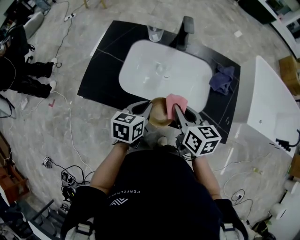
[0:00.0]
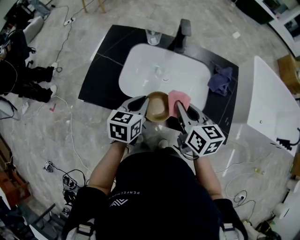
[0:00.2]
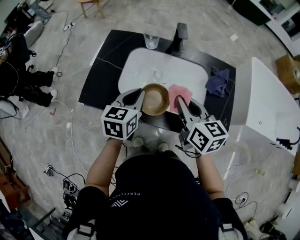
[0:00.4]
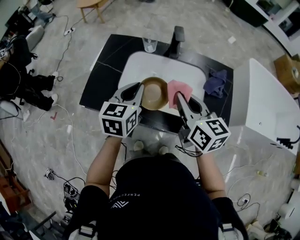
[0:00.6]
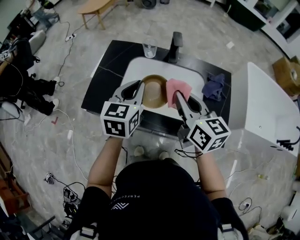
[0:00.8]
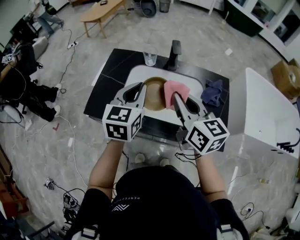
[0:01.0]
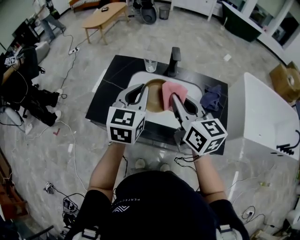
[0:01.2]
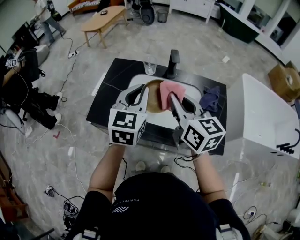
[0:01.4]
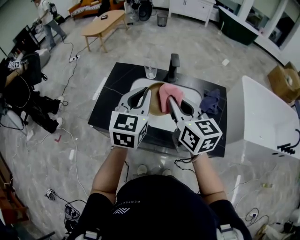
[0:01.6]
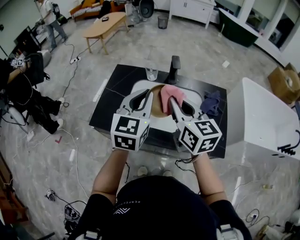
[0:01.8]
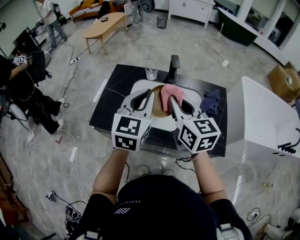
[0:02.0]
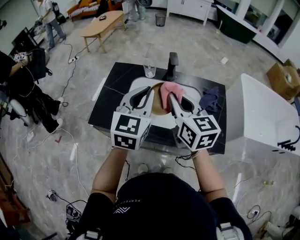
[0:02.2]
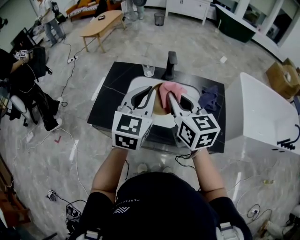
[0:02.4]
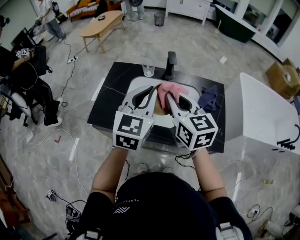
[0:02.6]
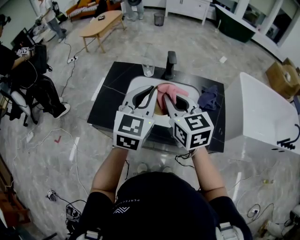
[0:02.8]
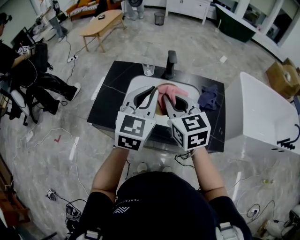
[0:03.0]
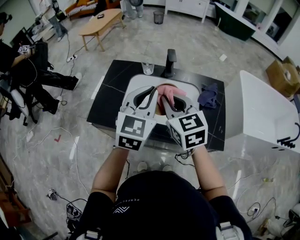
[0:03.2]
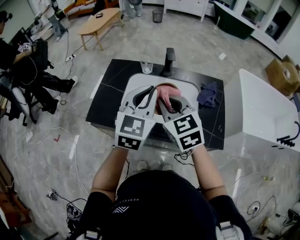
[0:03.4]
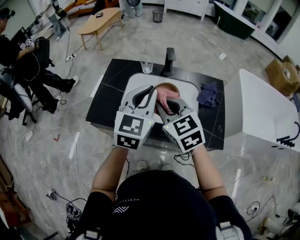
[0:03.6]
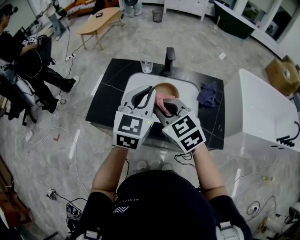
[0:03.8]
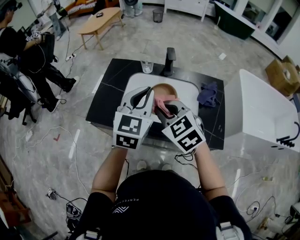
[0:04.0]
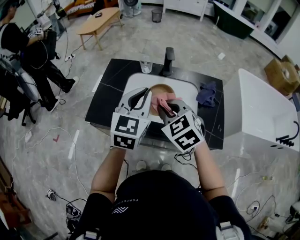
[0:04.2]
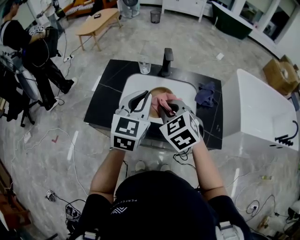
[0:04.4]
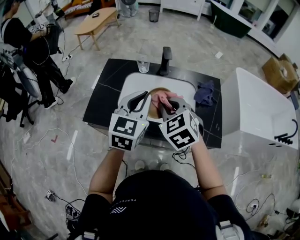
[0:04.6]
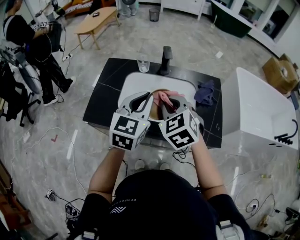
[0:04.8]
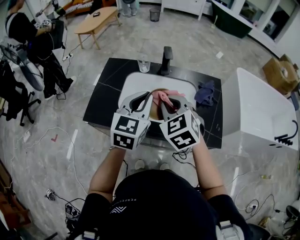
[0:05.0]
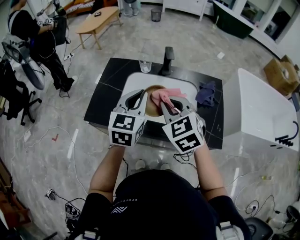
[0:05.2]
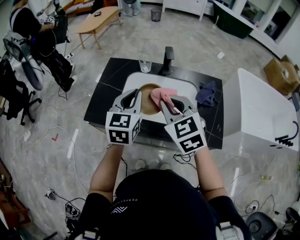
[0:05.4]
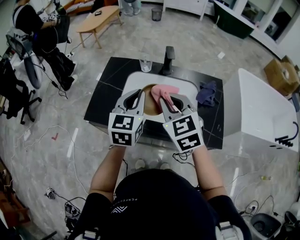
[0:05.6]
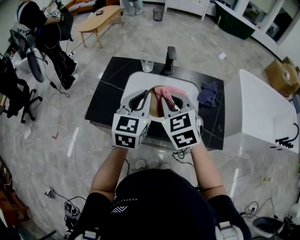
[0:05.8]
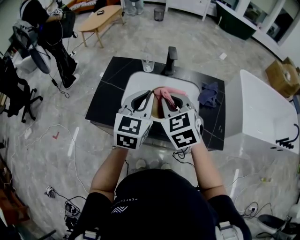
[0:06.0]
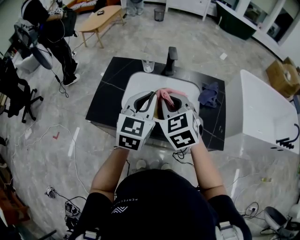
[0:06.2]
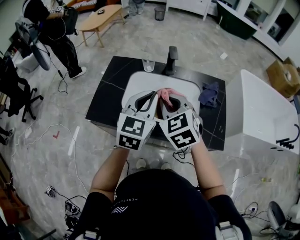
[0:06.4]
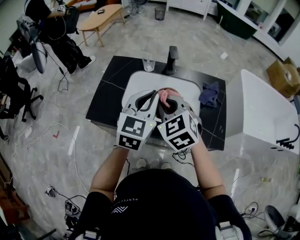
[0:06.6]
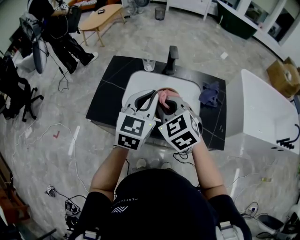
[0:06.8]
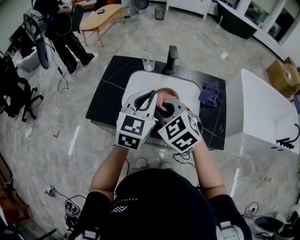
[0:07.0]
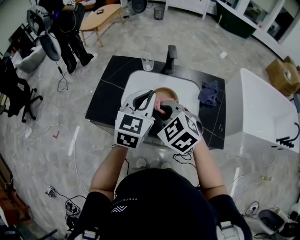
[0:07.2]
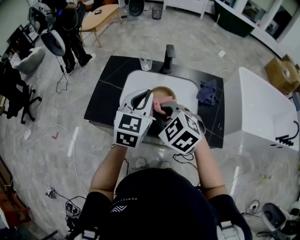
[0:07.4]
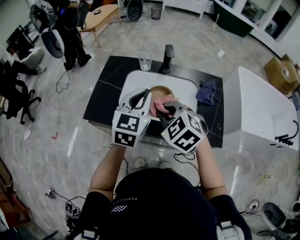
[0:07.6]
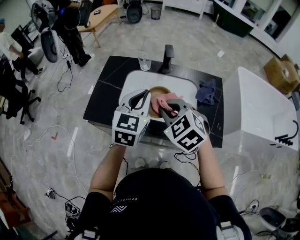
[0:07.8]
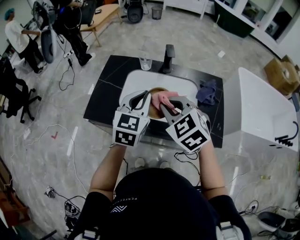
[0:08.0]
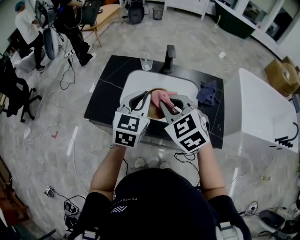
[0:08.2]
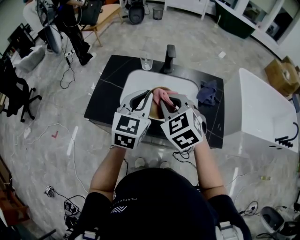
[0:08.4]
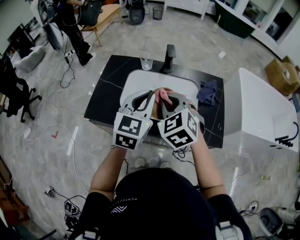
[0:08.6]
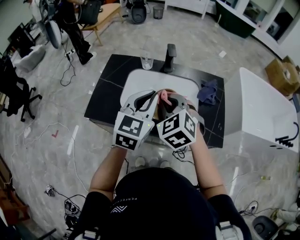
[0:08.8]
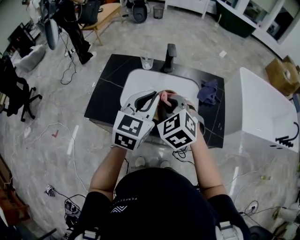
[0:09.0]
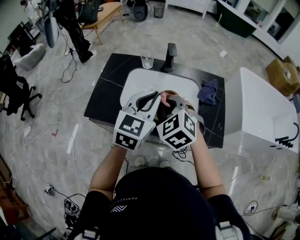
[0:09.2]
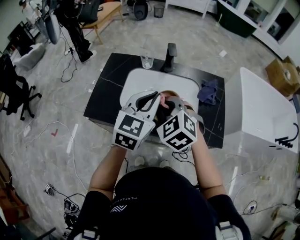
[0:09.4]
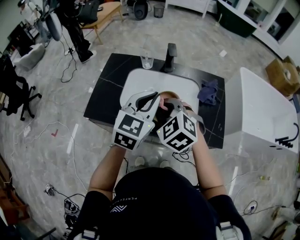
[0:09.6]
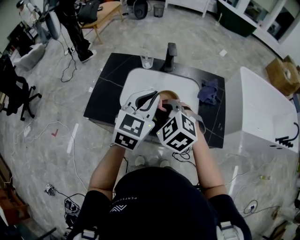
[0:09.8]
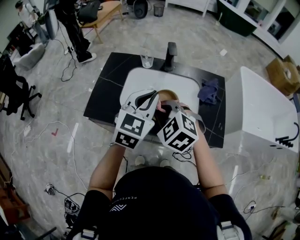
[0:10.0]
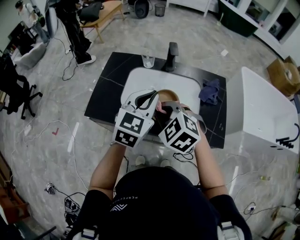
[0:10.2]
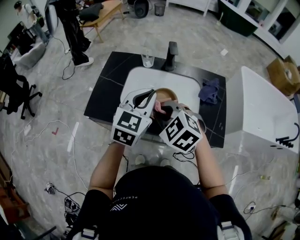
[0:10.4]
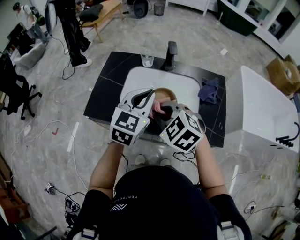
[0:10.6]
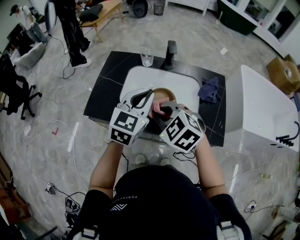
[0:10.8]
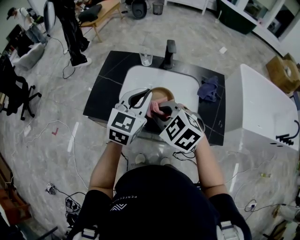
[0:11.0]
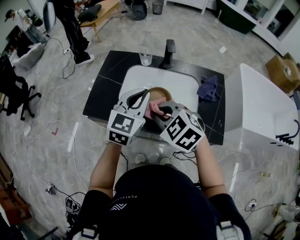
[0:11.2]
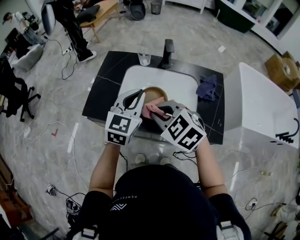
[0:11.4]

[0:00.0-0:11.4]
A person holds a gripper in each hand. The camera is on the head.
0:00.0 to 0:01.4: The grippers both shift upward by approximately 20 cm. The right gripper swivels some 30 degrees, while the left gripper swivels roughly 40 degrees.
0:01.4 to 0:02.8: The left gripper changes place by about 5 cm.
0:02.8 to 0:04.2: The right gripper is displaced downward by about 5 cm, and changes its angle by approximately 30 degrees.
0:04.2 to 0:05.6: The grippers stay close to where they were, moving slightly.
0:05.6 to 0:07.2: The right gripper ends up approximately 5 cm from where it was, and turns by approximately 20 degrees.
0:07.2 to 0:08.6: The right gripper shifts by roughly 5 cm.
0:08.6 to 0:10.0: The right gripper ends up approximately 5 cm from where it was.
0:10.0 to 0:11.4: The grippers make only small movements.

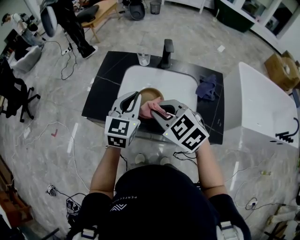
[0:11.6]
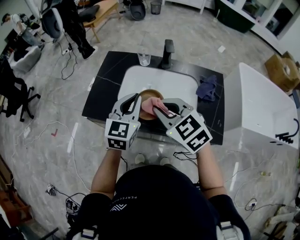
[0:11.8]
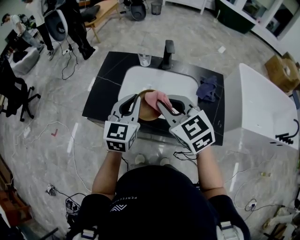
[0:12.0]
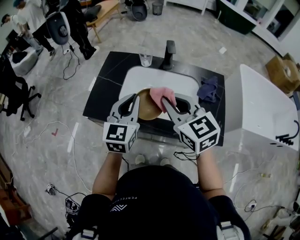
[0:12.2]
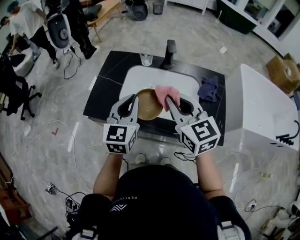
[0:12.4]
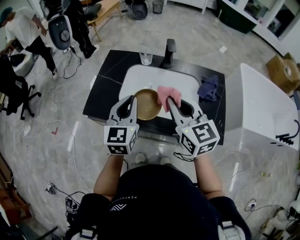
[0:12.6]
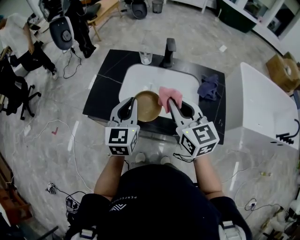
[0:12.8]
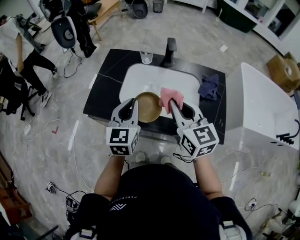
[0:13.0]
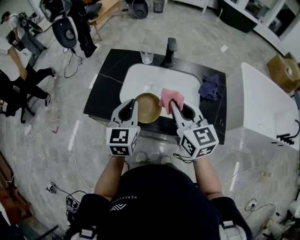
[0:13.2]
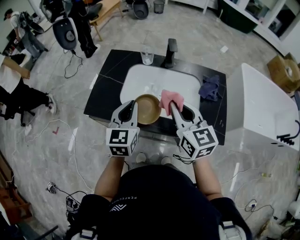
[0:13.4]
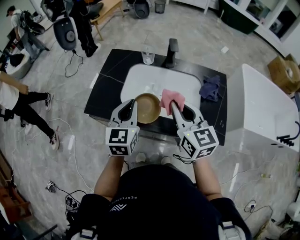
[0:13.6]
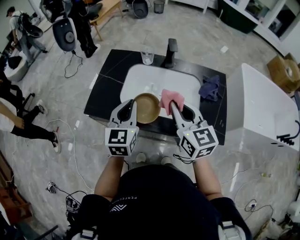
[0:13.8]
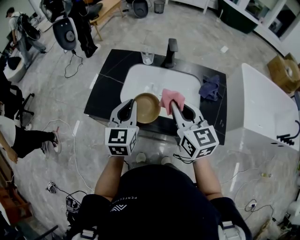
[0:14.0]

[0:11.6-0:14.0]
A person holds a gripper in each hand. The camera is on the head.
0:11.6 to 0:12.8: The right gripper travels to the right by some 5 cm, and changes its angle by some 40 degrees.
0:12.8 to 0:14.0: Both grippers stay put.

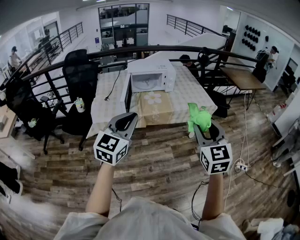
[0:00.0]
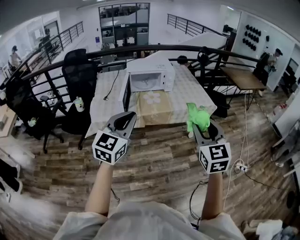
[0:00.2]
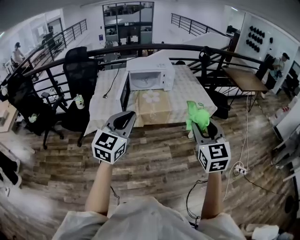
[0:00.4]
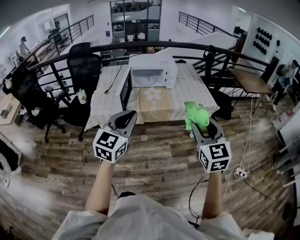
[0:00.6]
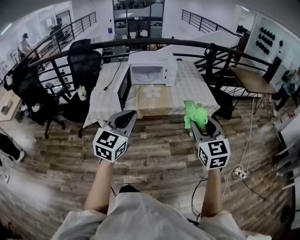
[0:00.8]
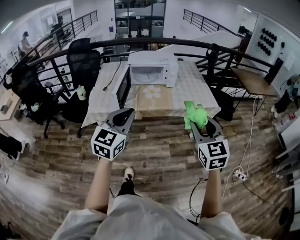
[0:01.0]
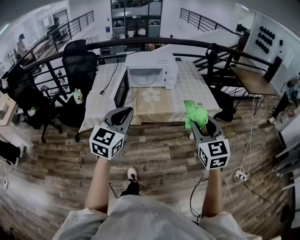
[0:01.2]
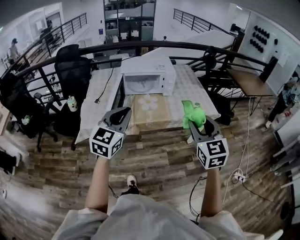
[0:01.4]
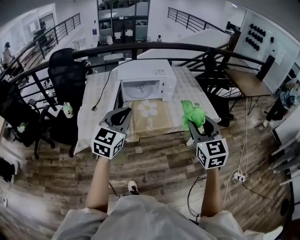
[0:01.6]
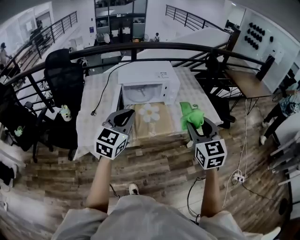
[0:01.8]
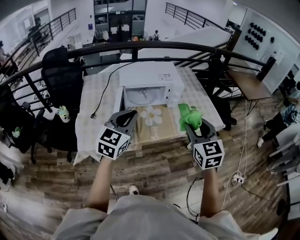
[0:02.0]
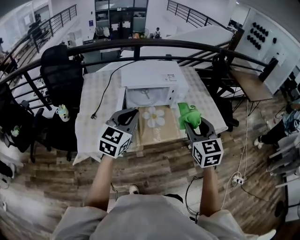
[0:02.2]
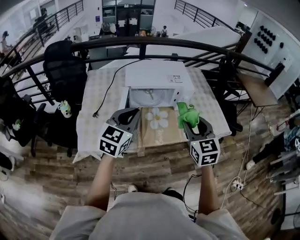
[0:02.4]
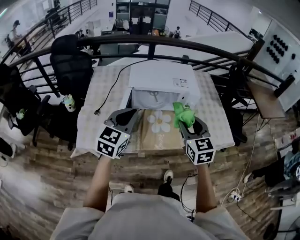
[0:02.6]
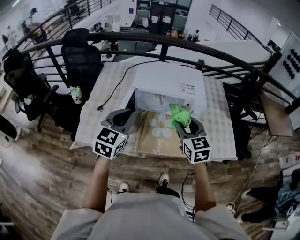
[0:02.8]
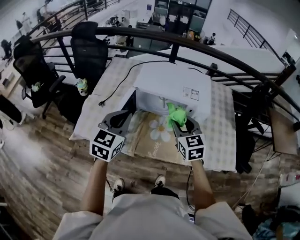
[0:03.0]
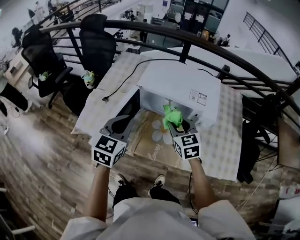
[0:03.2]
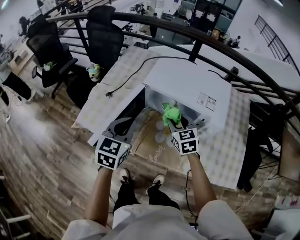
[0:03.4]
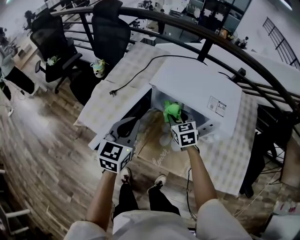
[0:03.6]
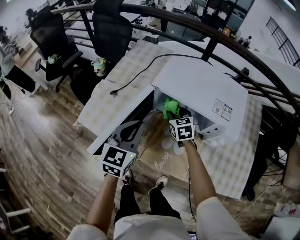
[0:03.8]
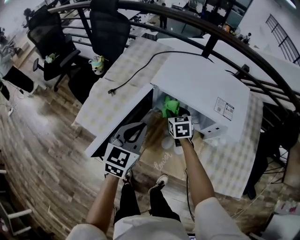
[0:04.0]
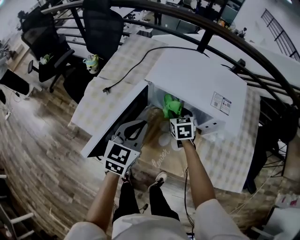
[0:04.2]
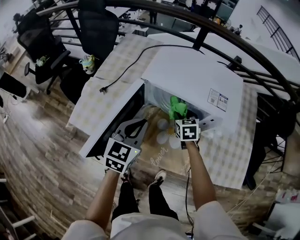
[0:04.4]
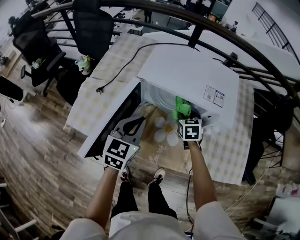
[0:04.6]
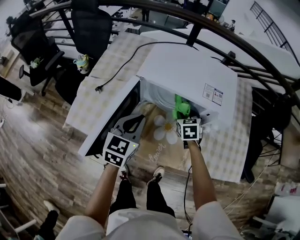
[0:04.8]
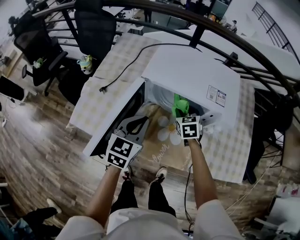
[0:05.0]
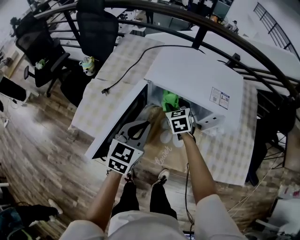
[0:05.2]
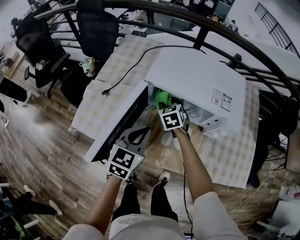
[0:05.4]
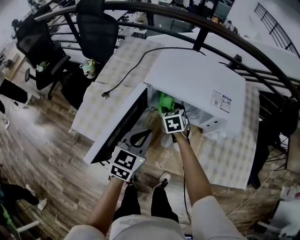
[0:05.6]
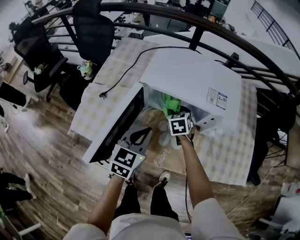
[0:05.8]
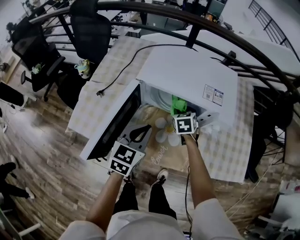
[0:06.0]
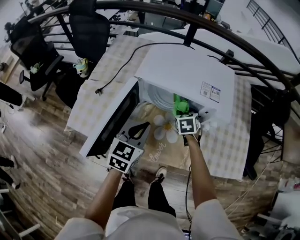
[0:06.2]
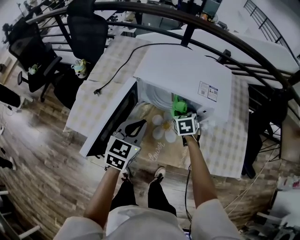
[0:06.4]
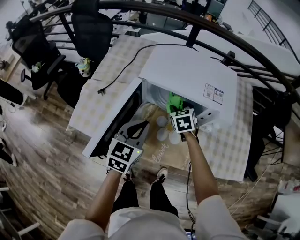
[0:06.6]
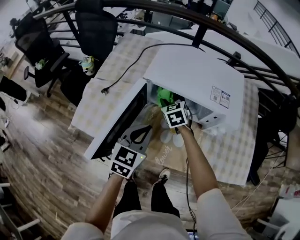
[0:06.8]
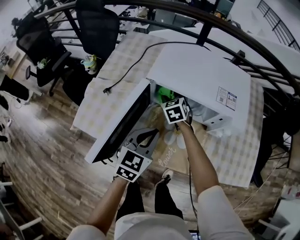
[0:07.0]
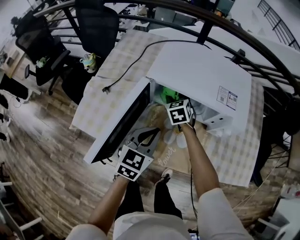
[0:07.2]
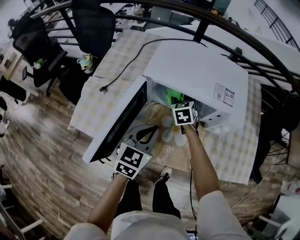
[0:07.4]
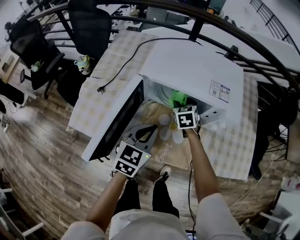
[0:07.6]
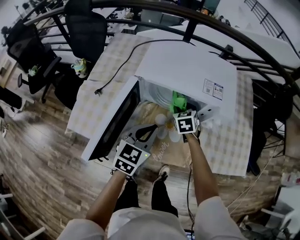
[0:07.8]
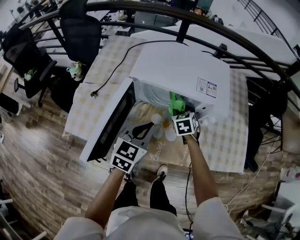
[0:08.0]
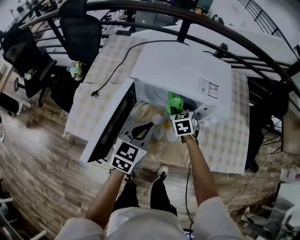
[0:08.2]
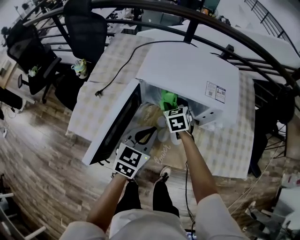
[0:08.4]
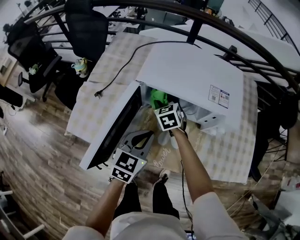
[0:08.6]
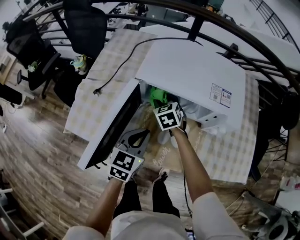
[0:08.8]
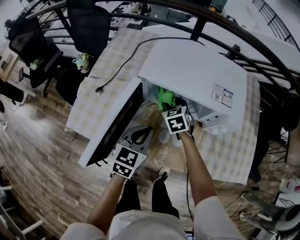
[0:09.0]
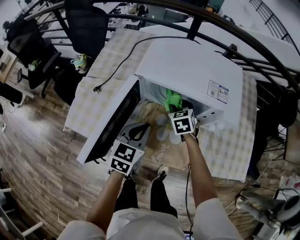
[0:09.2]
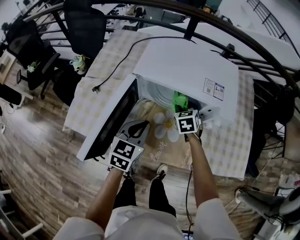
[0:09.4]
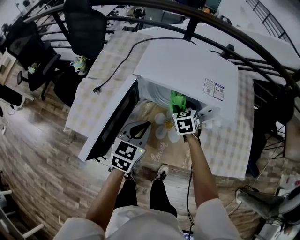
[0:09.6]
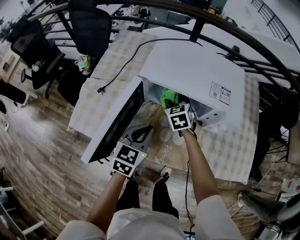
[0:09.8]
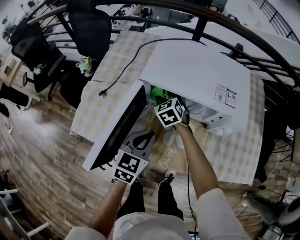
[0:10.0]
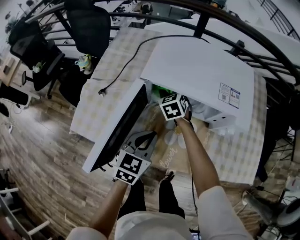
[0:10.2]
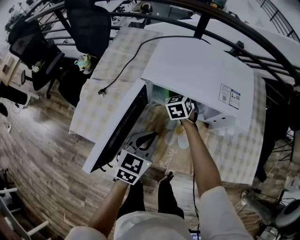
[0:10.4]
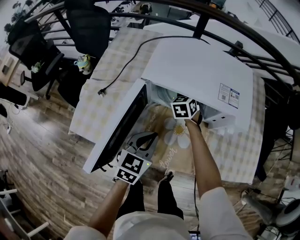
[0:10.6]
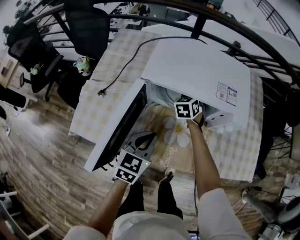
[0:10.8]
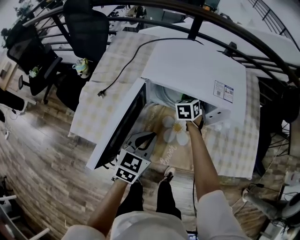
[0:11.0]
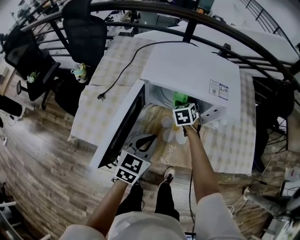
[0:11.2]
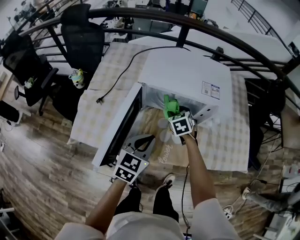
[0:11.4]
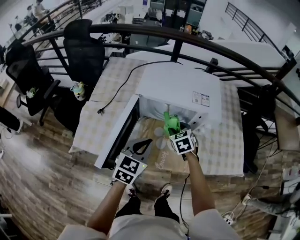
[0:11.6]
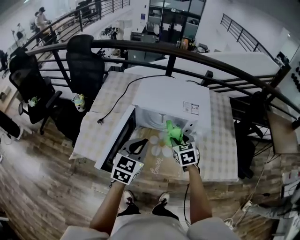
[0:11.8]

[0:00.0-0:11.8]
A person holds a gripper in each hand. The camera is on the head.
0:00.0 to 0:01.4: The grippers both shift forward by some 20 cm.
0:01.4 to 0:03.0: The right gripper changes place by about 50 cm, and changes its angle by about 30 degrees; the left gripper changes place by some 35 cm, and changes its angle by approximately 20 degrees.
0:03.0 to 0:04.4: The left gripper moves downward and forward, about 15 cm. Meanwhile the right gripper heads downward and forward, covering approximately 30 cm, and swivels approximately 20 degrees.
0:04.4 to 0:06.0: The right gripper goes left and right, some 15 cm each way, reversing 2 times.
0:06.0 to 0:07.4: The right gripper is displaced to the left by some 5 cm.
0:07.4 to 0:08.8: The right gripper moves to the left, approximately 5 cm.
0:08.8 to 0:10.4: The right gripper goes left and right, approximately 15 cm each way, reversing 2 times.
0:10.4 to 0:11.8: The left gripper travels upward by some 15 cm, while the right gripper heads backward, to the right and upward, covering roughly 25 cm.
